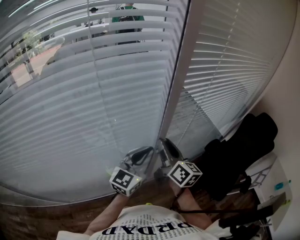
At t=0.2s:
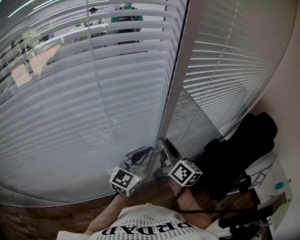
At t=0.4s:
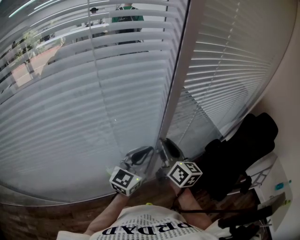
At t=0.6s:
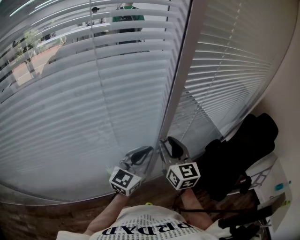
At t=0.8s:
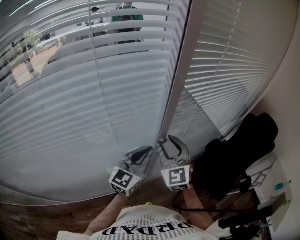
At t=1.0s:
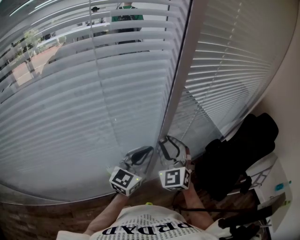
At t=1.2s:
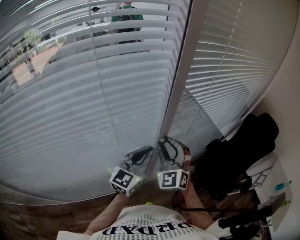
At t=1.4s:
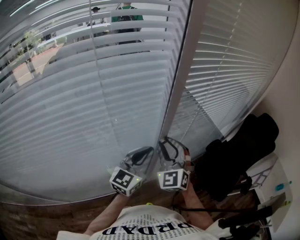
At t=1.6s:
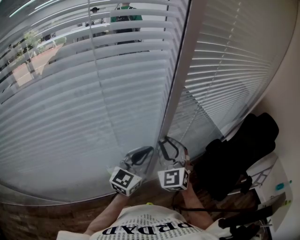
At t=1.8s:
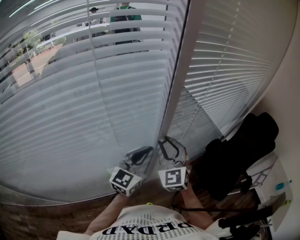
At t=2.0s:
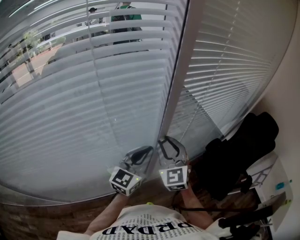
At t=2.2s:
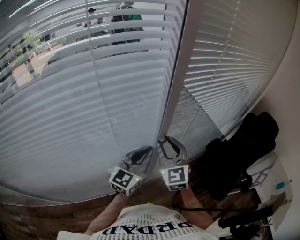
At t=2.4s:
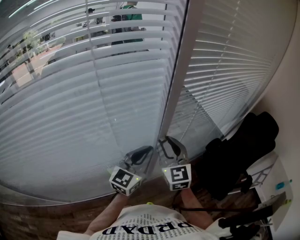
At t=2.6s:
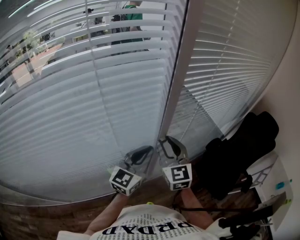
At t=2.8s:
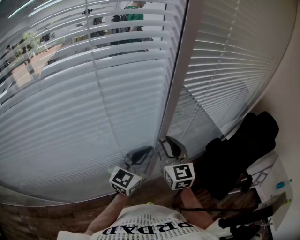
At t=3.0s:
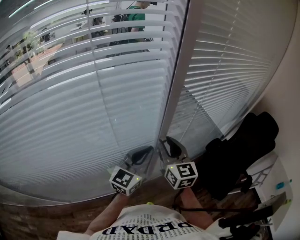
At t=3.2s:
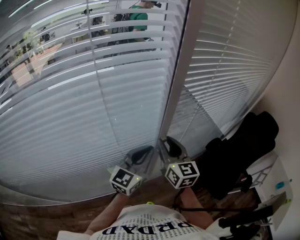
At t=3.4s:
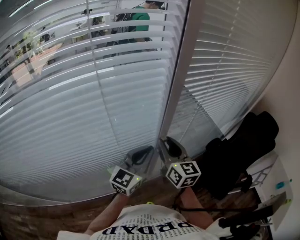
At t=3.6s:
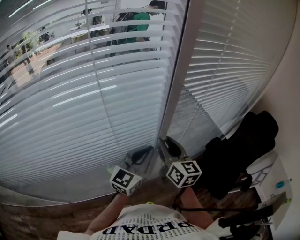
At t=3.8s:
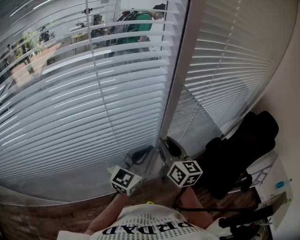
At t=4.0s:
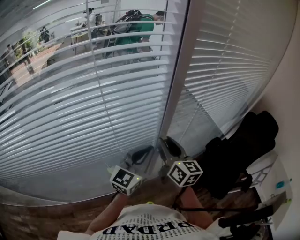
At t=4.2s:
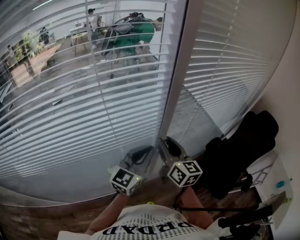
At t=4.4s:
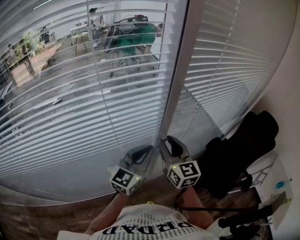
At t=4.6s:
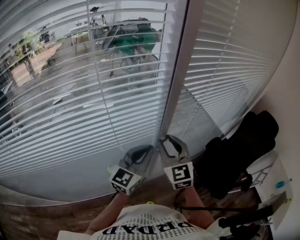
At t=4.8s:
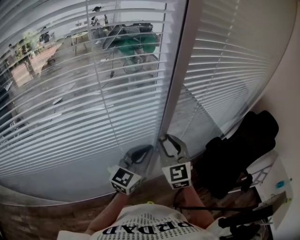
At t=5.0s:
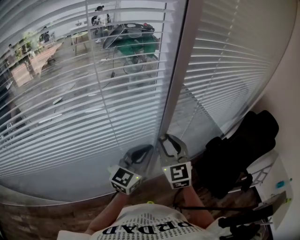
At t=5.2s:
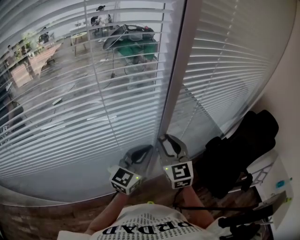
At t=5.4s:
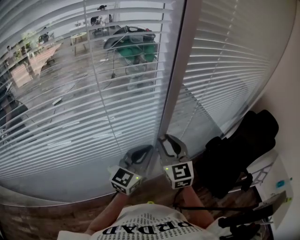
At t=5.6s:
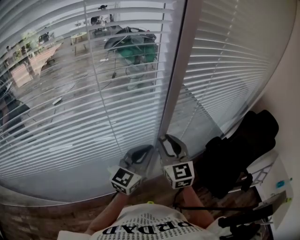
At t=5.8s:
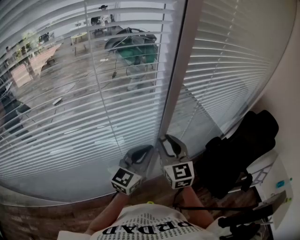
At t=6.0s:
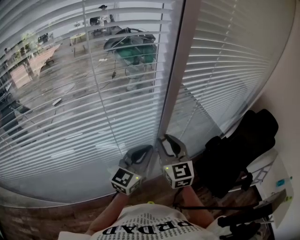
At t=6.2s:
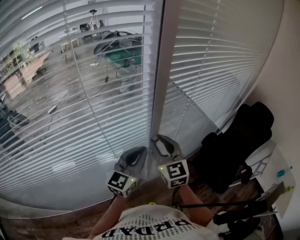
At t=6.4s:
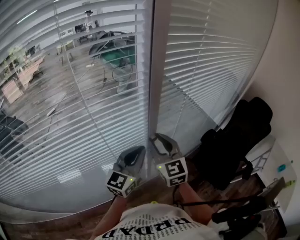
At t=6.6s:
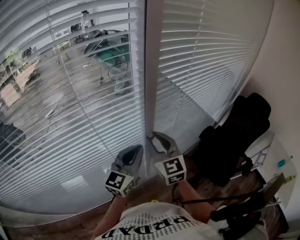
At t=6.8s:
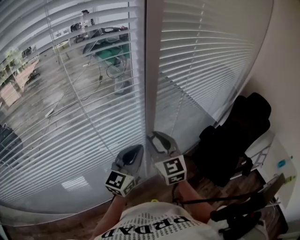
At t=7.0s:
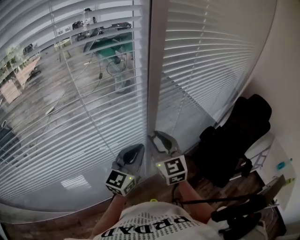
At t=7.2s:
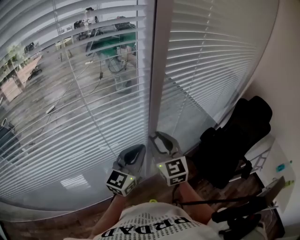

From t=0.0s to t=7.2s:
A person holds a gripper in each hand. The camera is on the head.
From t=0.0s to t=1.4s: The right gripper rolls counterclockwise, seen from behind, by approximately 80 degrees.
From t=1.4s to t=2.8s: The right gripper rotates about 40 degrees.
From t=5.8s to t=7.2s: The grippers move only a little.

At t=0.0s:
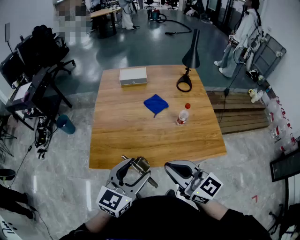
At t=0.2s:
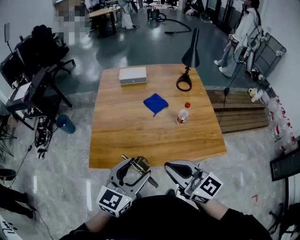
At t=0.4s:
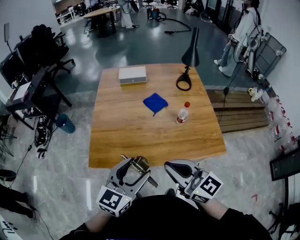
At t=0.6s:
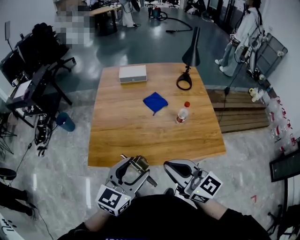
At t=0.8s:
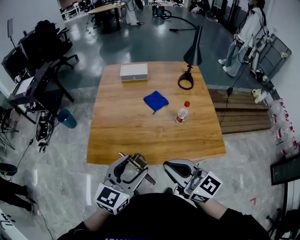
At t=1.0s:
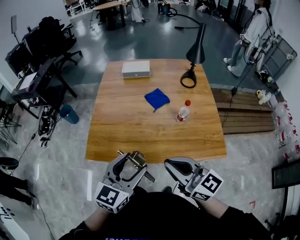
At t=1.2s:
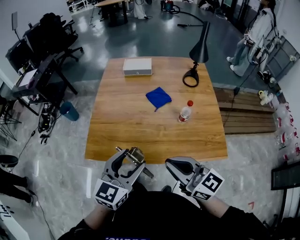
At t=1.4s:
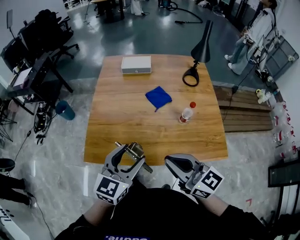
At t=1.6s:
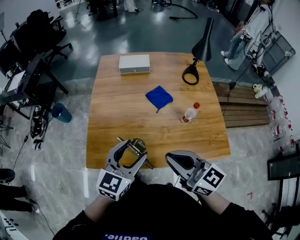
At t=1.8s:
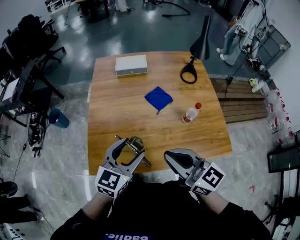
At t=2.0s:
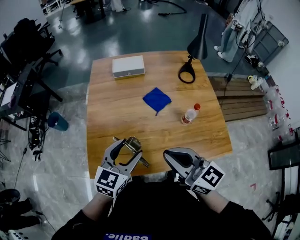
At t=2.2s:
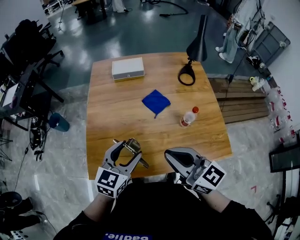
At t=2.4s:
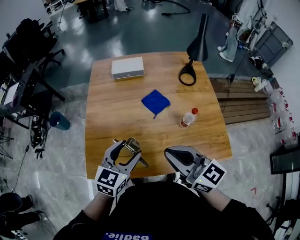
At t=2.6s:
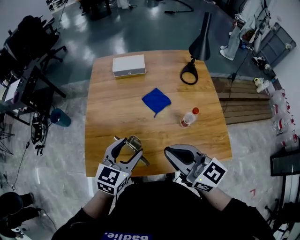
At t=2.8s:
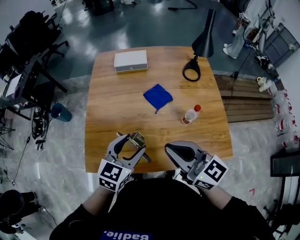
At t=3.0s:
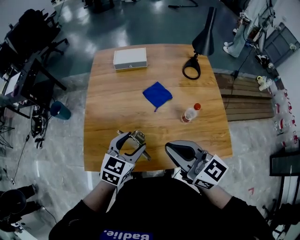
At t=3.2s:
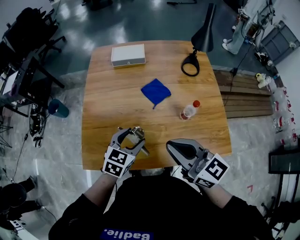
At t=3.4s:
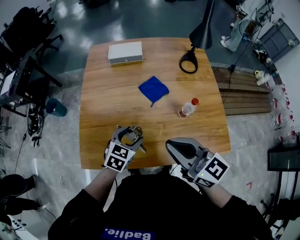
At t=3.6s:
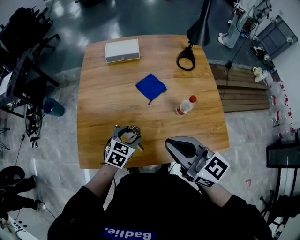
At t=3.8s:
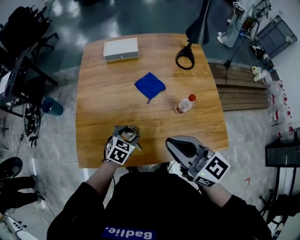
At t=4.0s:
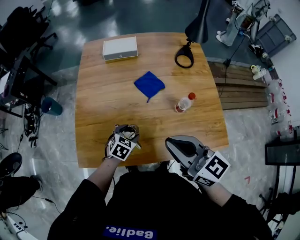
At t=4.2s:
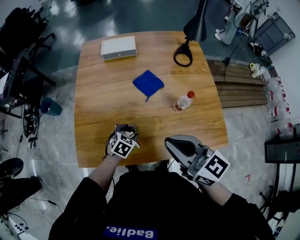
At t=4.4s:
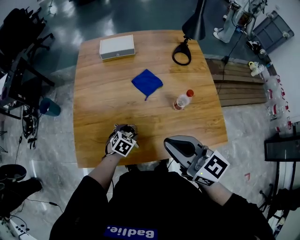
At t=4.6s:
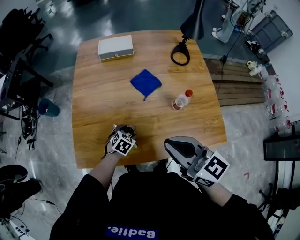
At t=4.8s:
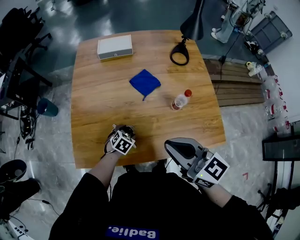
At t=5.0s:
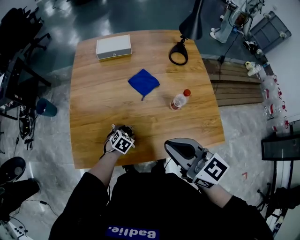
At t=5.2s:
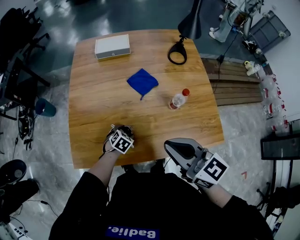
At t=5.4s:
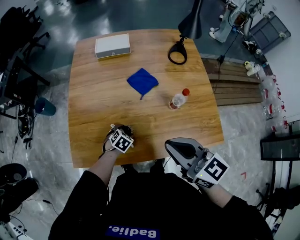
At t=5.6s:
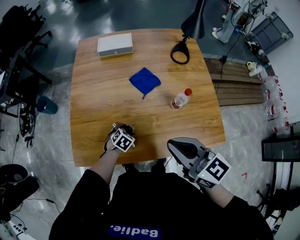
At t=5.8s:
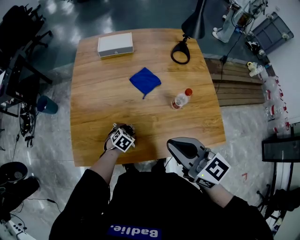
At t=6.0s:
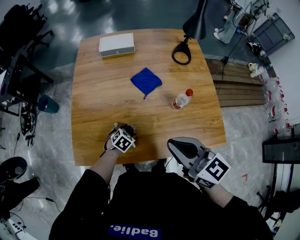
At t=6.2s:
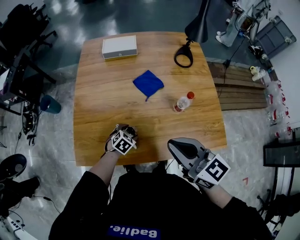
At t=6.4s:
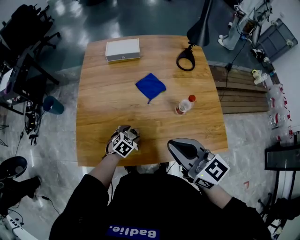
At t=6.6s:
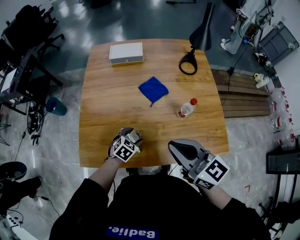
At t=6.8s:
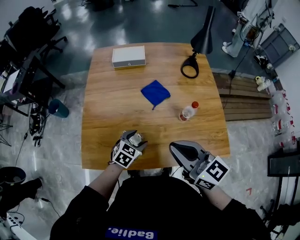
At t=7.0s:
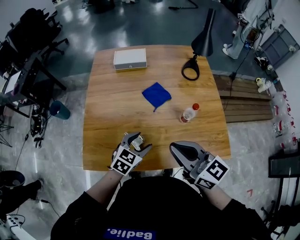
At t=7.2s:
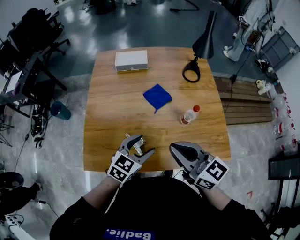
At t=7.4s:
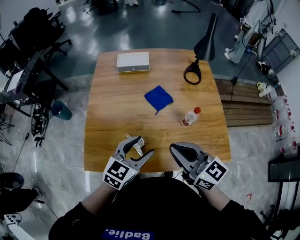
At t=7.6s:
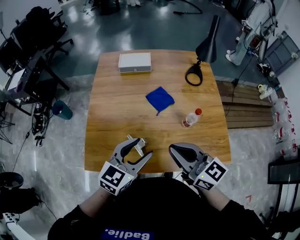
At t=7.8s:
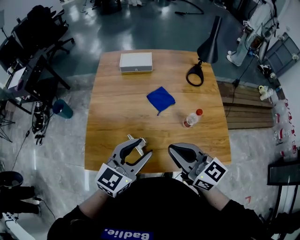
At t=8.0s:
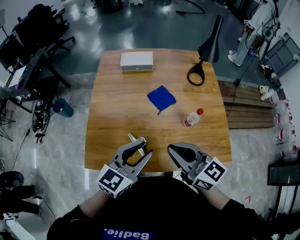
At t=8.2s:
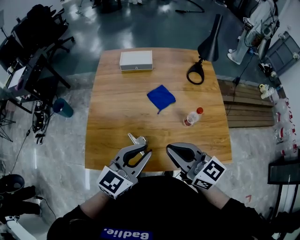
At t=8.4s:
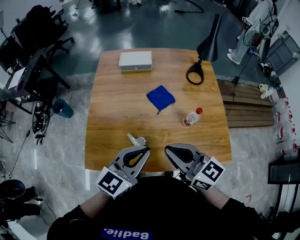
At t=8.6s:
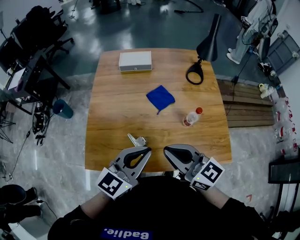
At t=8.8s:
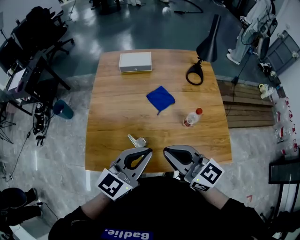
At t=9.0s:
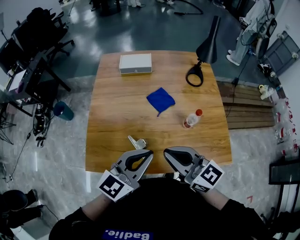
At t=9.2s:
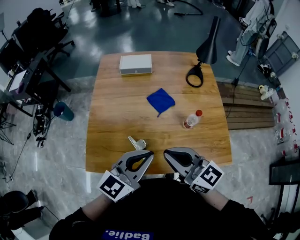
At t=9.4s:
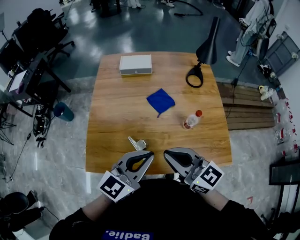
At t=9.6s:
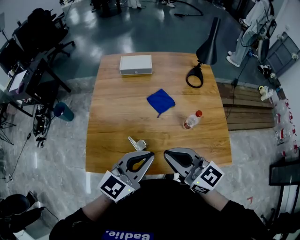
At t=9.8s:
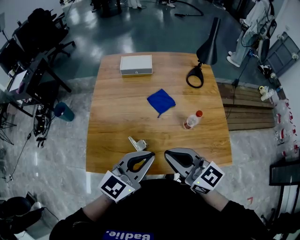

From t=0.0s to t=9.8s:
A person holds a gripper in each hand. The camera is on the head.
From t=0.0s to t=1.4s: Both grippers move forward, approximately 5 cm.
From t=1.4s to t=2.8s: The left gripper travels forward and downward by some 15 cm. The right gripper heads forward, covering approximately 10 cm.
From t=2.8s to t=4.2s: The left gripper moves downward, roughly 25 cm, and points its fingers approximately 30 degrees further downward.
From t=4.2s to t=5.6s: The left gripper heads downward, covering some 10 cm.
From t=5.6s to t=7.0s: The left gripper moves upward, about 20 cm, and changes its angle by some 30 degrees.
From t=7.0s to t=8.4s: The left gripper goes approximately 15 cm upward, swivels about 30 degrees, and closes up.
From t=8.4s to t=9.8s: There are only small adjustments of the grippers.

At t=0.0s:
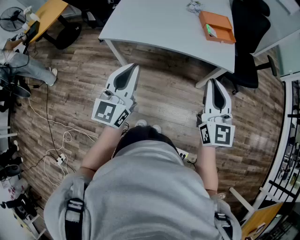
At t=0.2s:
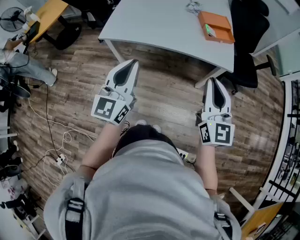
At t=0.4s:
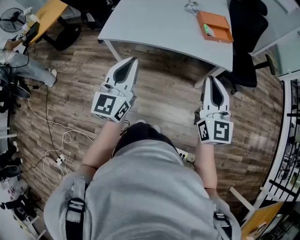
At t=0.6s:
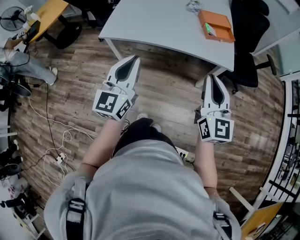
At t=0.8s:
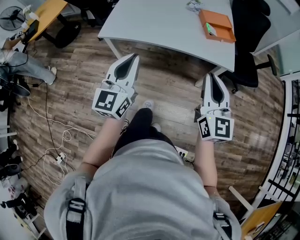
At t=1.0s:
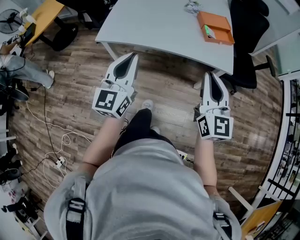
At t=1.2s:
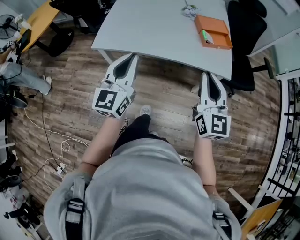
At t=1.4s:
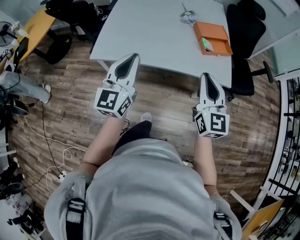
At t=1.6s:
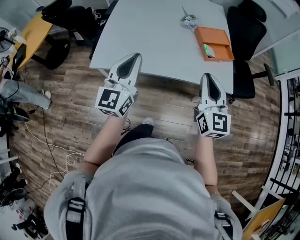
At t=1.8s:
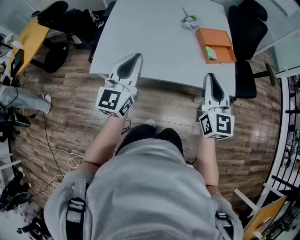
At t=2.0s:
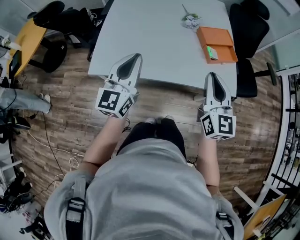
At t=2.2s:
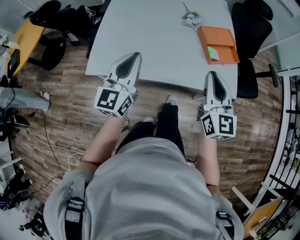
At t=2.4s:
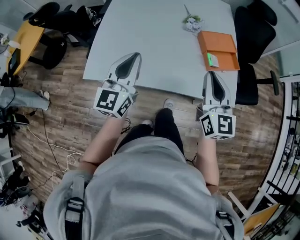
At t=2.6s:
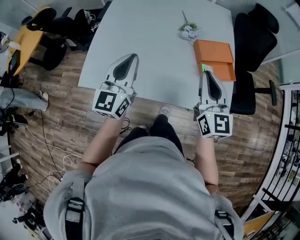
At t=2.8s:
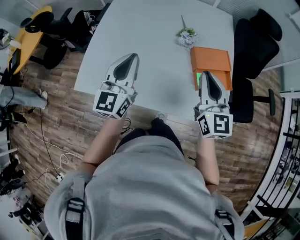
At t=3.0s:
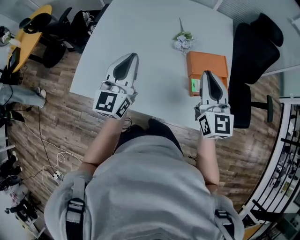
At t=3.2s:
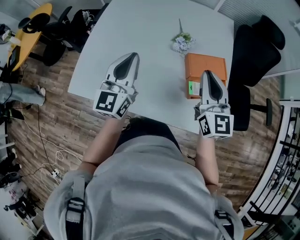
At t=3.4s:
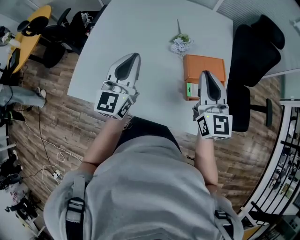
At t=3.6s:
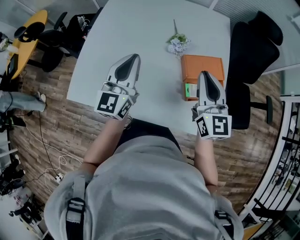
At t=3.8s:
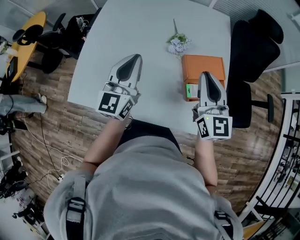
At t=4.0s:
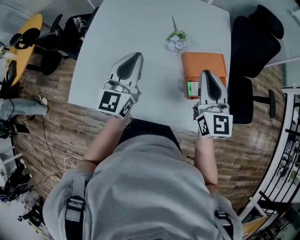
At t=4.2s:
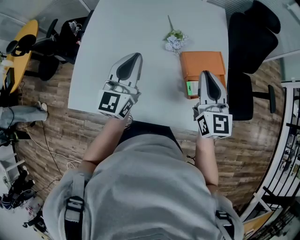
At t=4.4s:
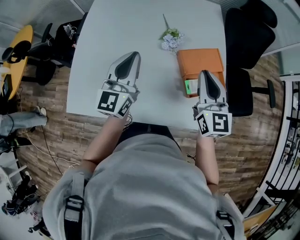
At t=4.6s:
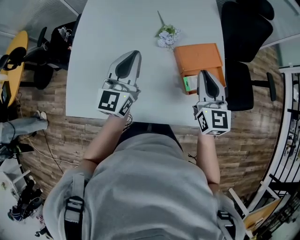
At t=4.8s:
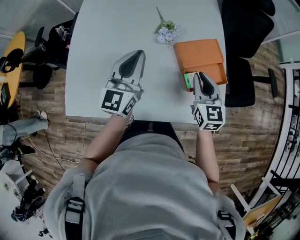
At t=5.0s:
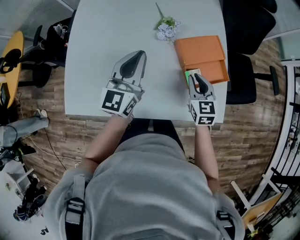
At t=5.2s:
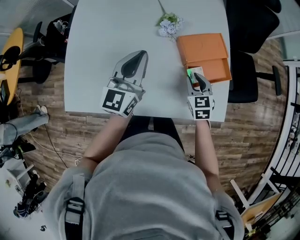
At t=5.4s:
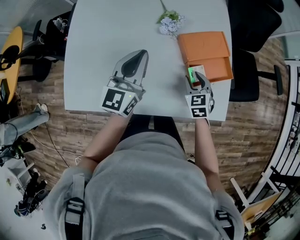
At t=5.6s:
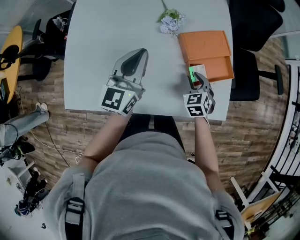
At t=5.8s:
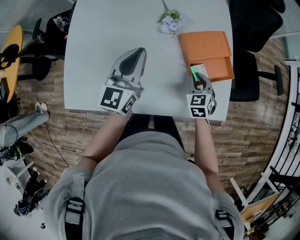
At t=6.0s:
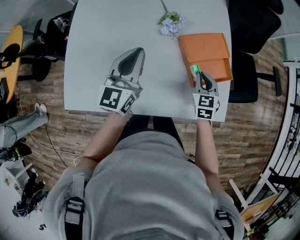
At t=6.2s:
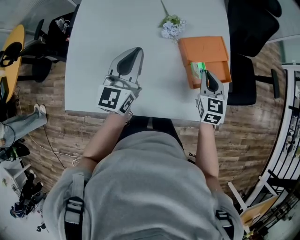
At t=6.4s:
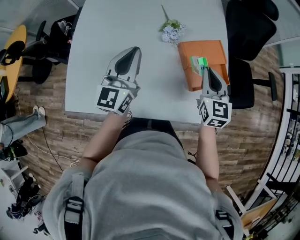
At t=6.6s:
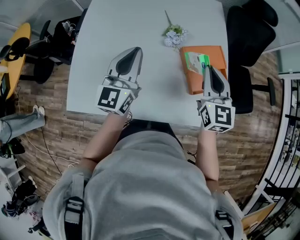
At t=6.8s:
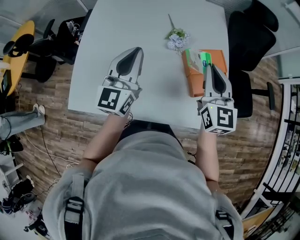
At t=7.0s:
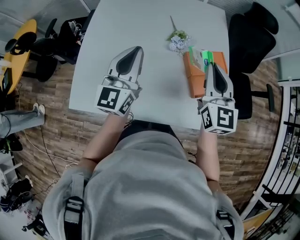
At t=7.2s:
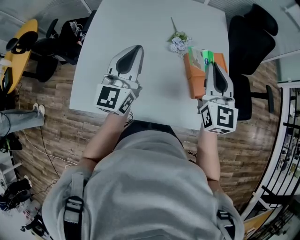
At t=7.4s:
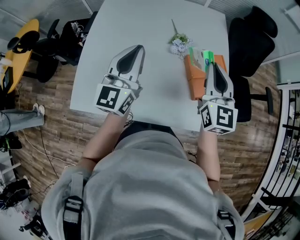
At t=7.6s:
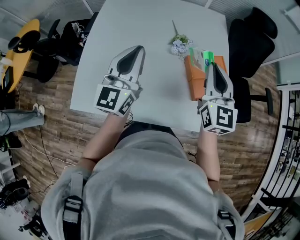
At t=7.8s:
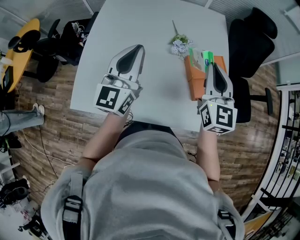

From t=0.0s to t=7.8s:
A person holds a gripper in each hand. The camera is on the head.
From t=0.0s to t=1.6s: The two grippers go some 25 cm forward.
From t=1.6s to t=3.2s: The grippers both shift forward by roughly 35 cm.
From t=3.2s to t=4.6s: The left gripper is displaced forward by about 10 cm, while the right gripper goes approximately 5 cm downward.
From t=4.6s to t=6.2s: The right gripper is displaced downward by roughly 10 cm, and opens and closes again.
From t=6.2s to t=7.8s: The left gripper is displaced upward and to the left by some 15 cm. Meanwhile the right gripper goes approximately 25 cm upward and to the left, and rotates roughly 20 degrees.
